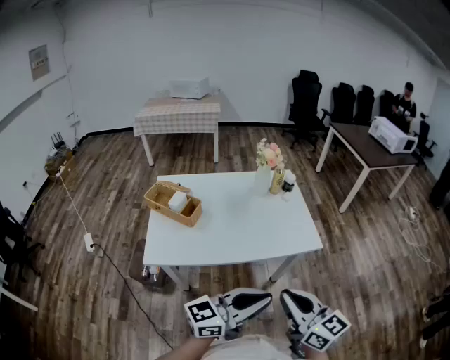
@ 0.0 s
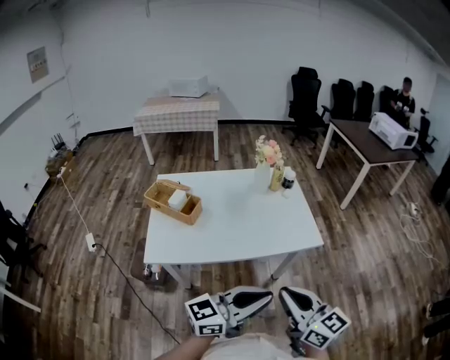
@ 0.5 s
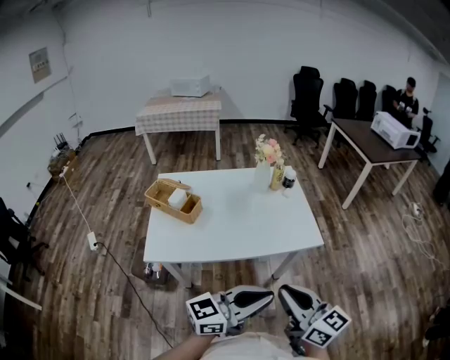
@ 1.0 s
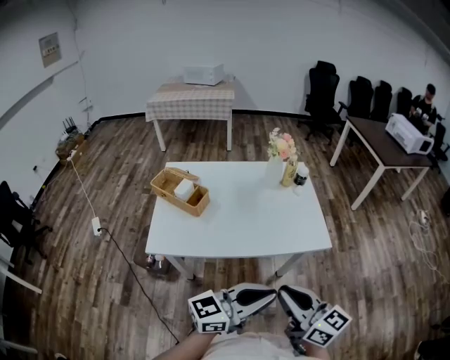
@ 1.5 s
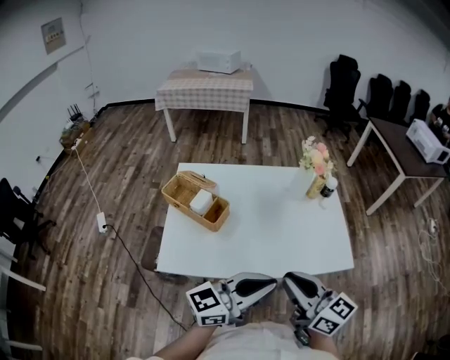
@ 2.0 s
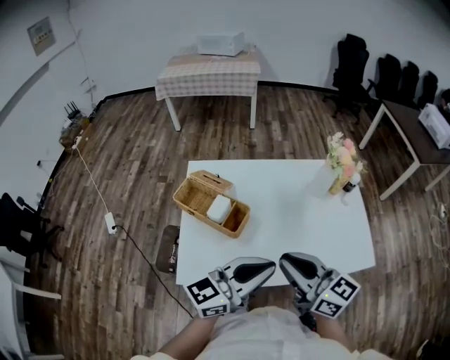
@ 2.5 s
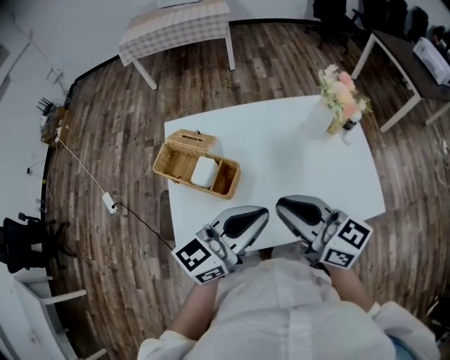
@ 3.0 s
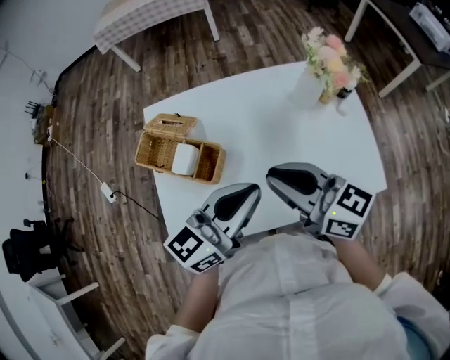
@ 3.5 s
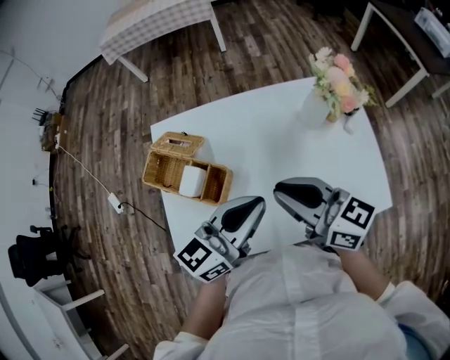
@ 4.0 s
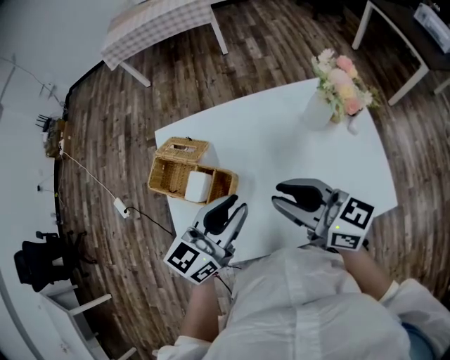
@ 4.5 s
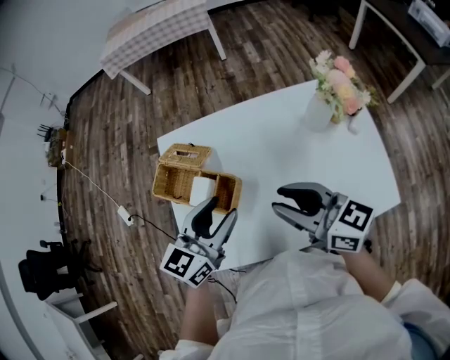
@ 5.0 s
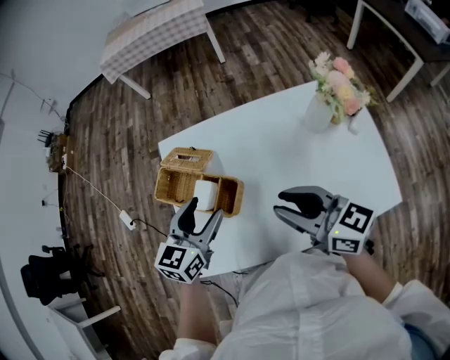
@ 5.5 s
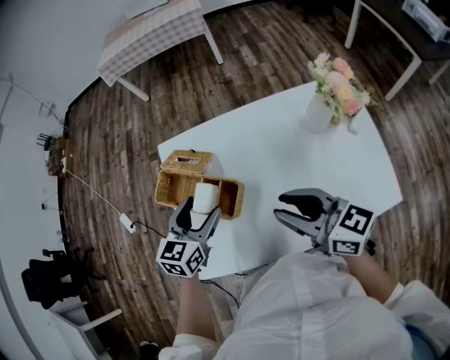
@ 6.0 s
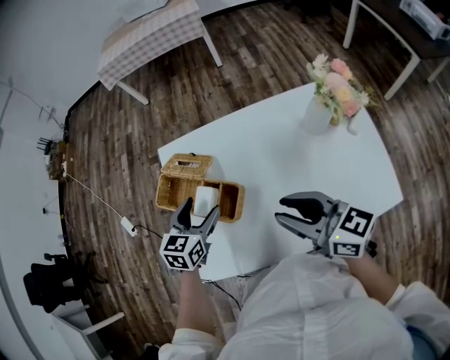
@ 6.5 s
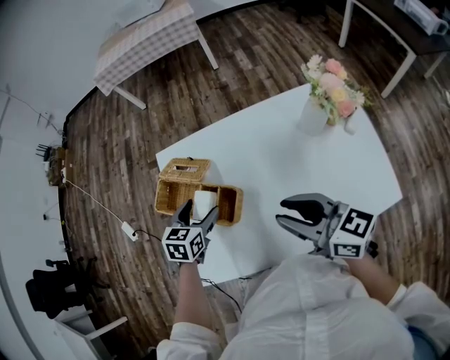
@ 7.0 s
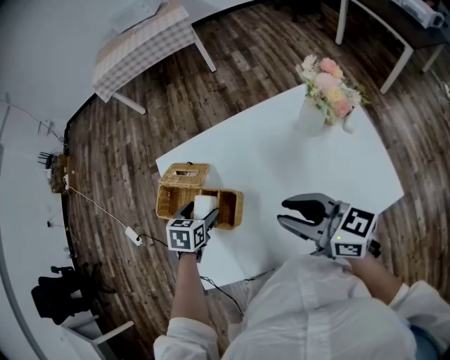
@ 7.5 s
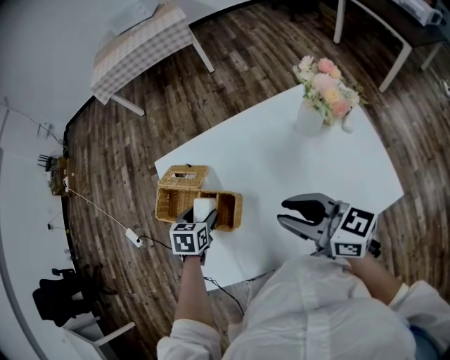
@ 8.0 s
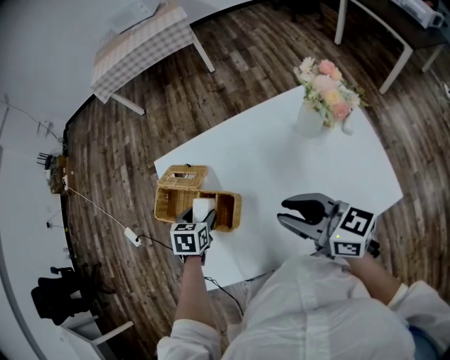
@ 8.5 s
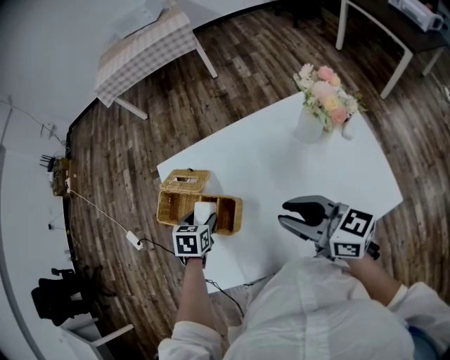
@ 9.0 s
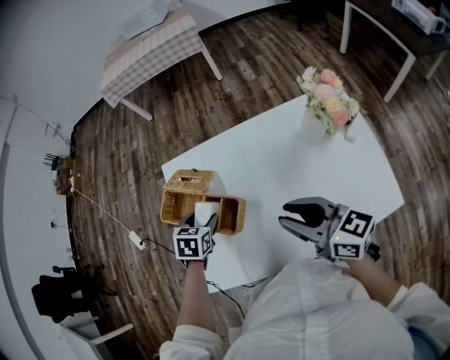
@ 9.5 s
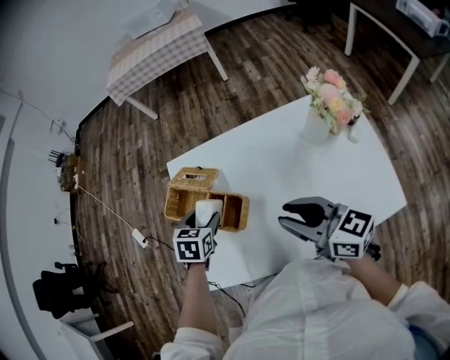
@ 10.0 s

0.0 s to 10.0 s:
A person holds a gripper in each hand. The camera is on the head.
0.0 to 2.0 s: Both grippers travel together forward and to the left, approximately 20 cm.
2.0 to 4.0 s: The grippers both shift forward by roughly 20 cm.
4.0 to 6.0 s: The left gripper heads to the left, downward and forward, covering some 20 cm, swivels about 40 degrees, and opens its fingers; the right gripper opens up.
6.0 to 8.0 s: The left gripper goes about 10 cm downward, and tilts its fingers approximately 30 degrees downward.
8.0 to 10.0 s: The left gripper is displaced upward by some 5 cm.

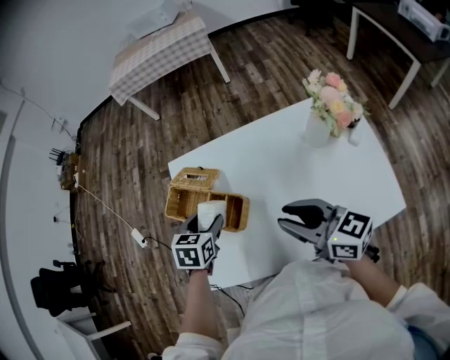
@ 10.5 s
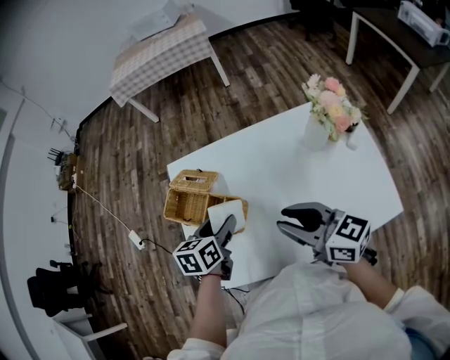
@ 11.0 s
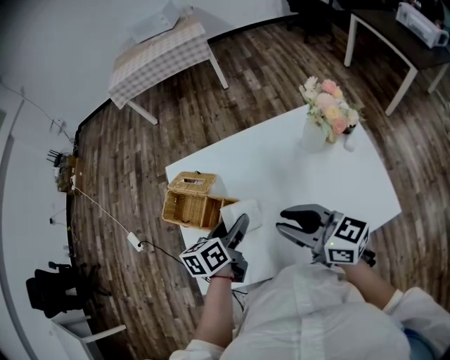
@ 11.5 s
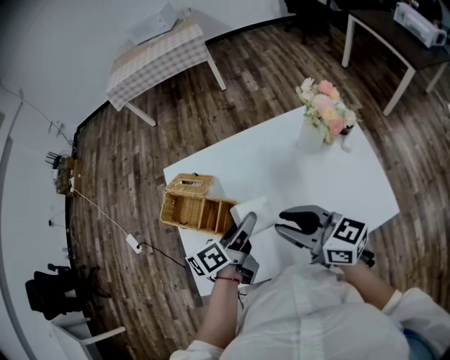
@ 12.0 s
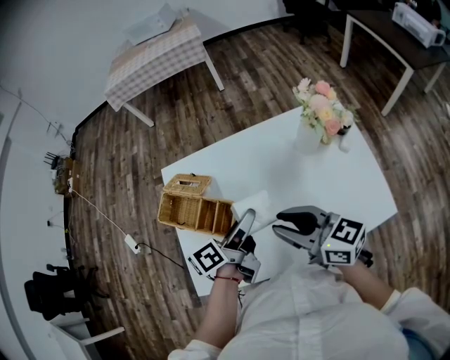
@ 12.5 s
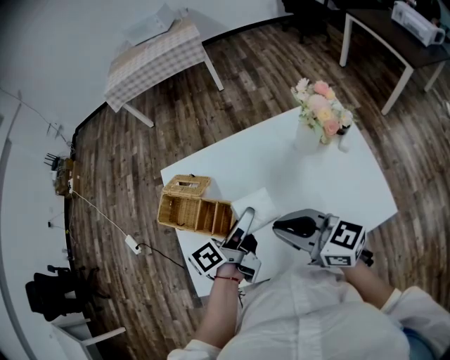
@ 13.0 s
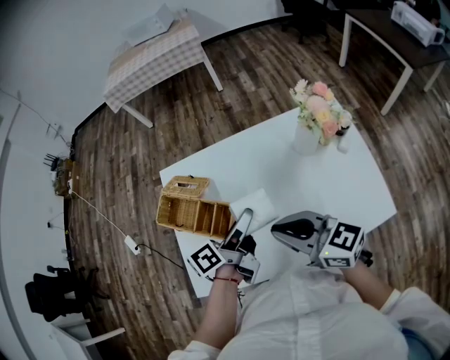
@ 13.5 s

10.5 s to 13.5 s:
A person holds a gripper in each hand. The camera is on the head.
10.5 to 12.0 s: The left gripper heads to the right and backward, covering about 15 cm, and twists approximately 50 degrees counterclockwise, seen from behind.
12.0 to 13.5 s: The right gripper closes its fingers.

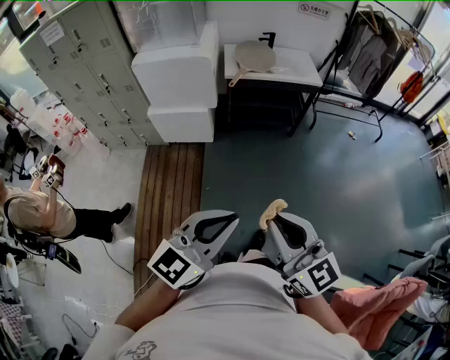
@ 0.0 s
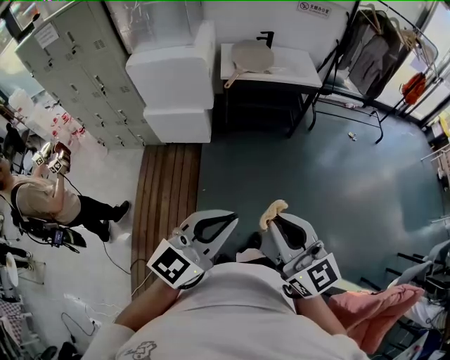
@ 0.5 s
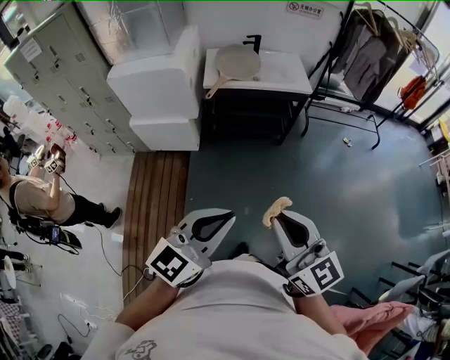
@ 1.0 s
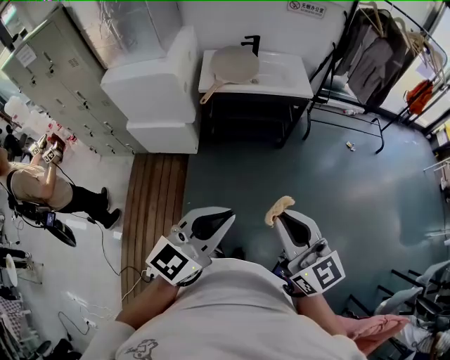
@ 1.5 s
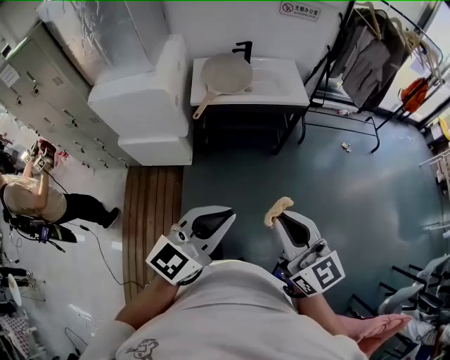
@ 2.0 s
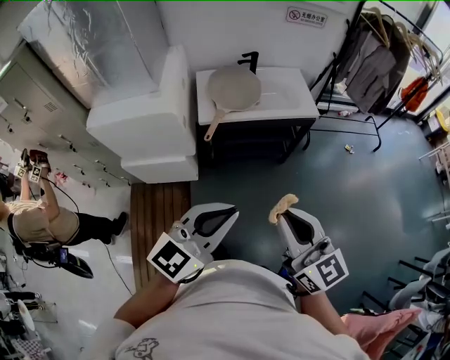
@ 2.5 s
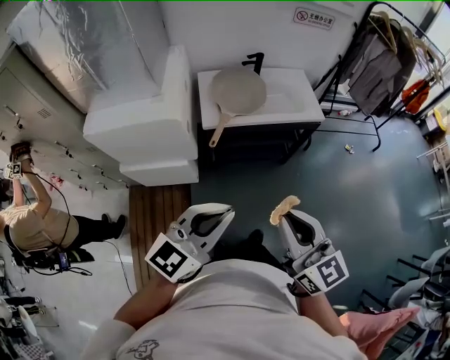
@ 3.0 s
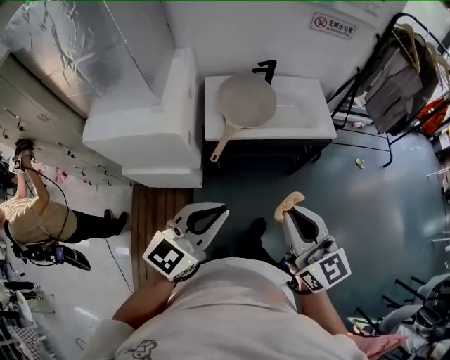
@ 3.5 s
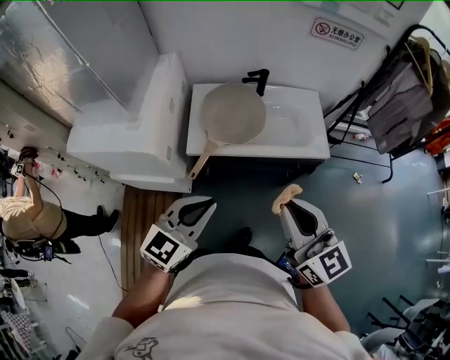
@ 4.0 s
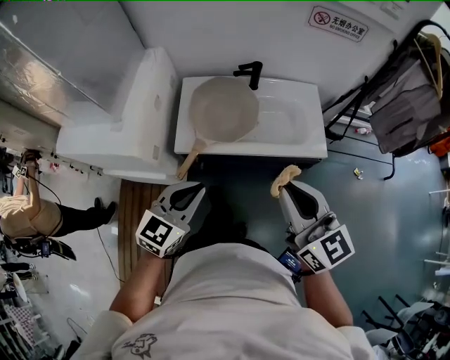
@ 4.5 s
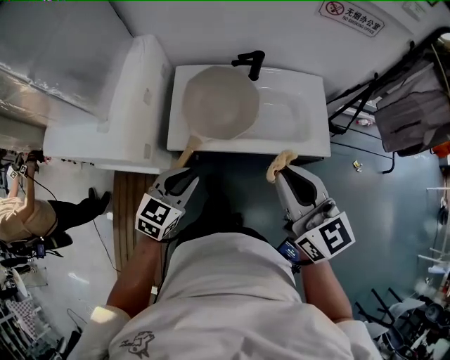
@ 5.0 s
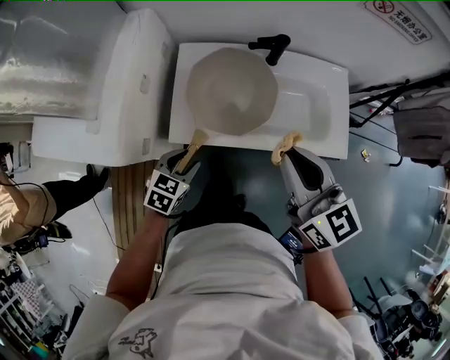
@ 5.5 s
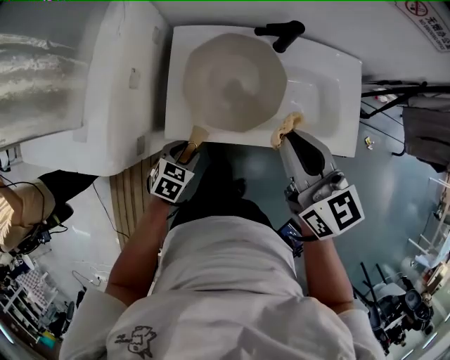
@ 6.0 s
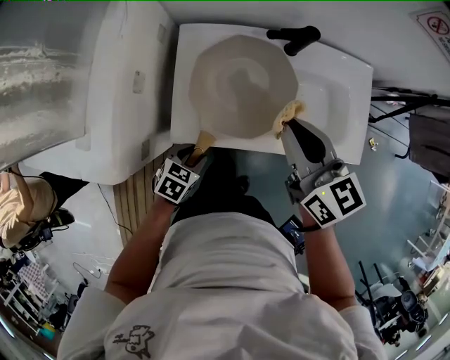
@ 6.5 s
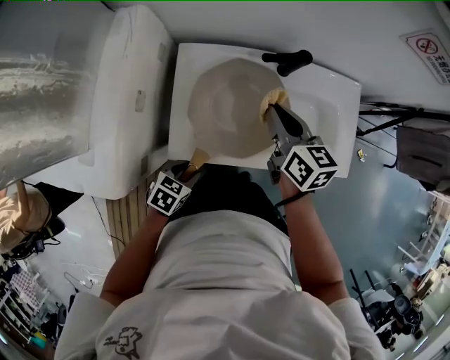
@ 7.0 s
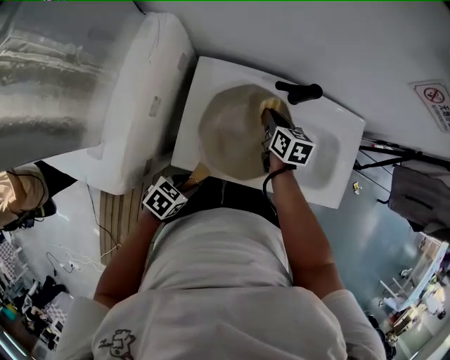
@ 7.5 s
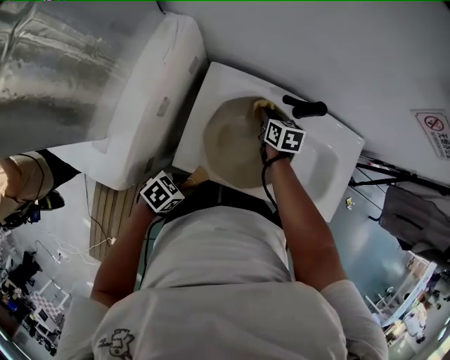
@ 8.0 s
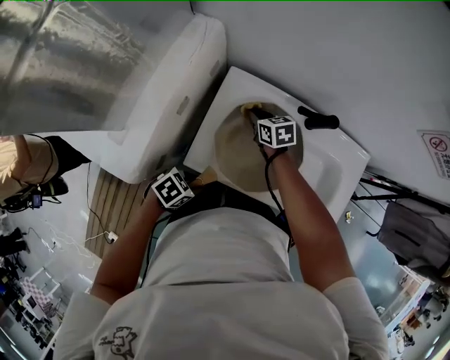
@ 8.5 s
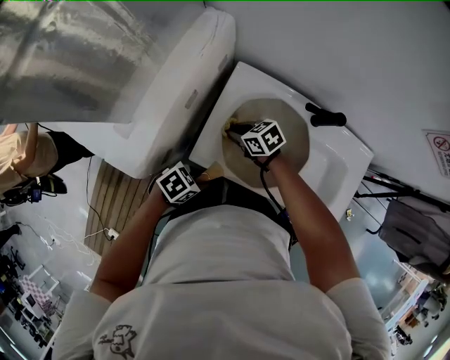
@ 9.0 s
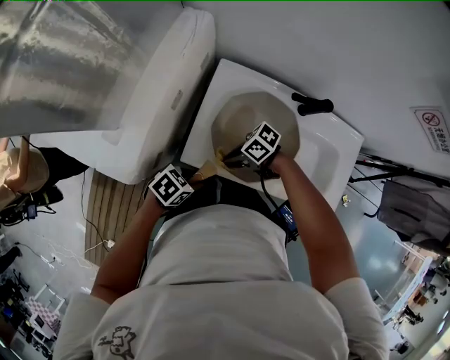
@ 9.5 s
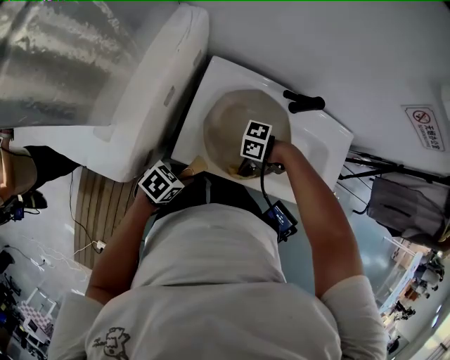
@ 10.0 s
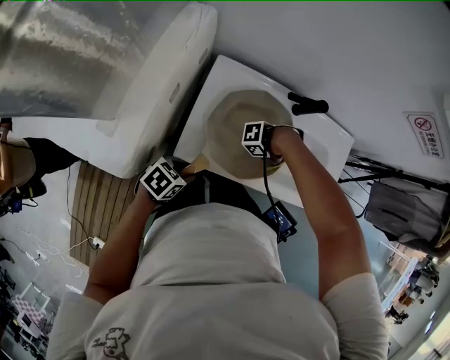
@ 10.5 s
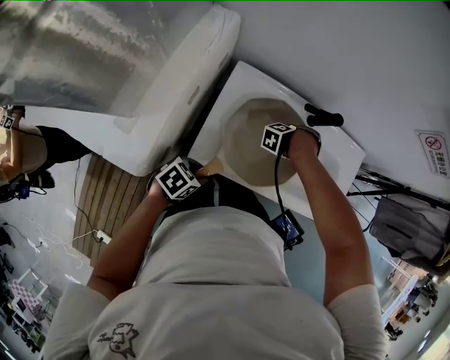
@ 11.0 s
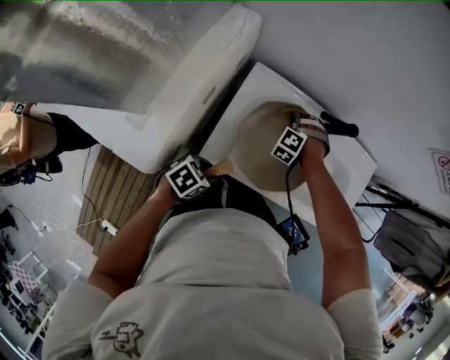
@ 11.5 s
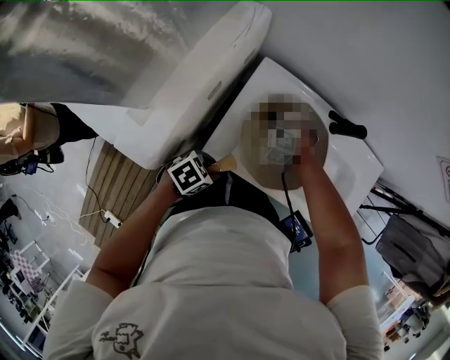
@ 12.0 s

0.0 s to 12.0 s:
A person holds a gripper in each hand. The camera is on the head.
0.0 to 2.0 s: The right gripper travels forward and to the right by some 35 cm; the left gripper moves forward, some 35 cm.
2.0 to 4.0 s: The two grippers travel together, forward, some 40 cm.
4.0 to 6.0 s: The right gripper moves forward and downward, approximately 35 cm, while the left gripper travels downward and forward by about 40 cm, tips its fingers downward by roughly 40 degrees, and opens up.
6.0 to 8.0 s: The right gripper goes some 35 cm downward, forward and to the left, and rotates approximately 30 degrees; the left gripper swivels approximately 20 degrees.
8.0 to 10.0 s: The right gripper shifts by approximately 30 cm, and rotates roughly 90 degrees.
10.0 to 12.0 s: The right gripper shifts by approximately 25 cm, and rotates approximately 90 degrees.

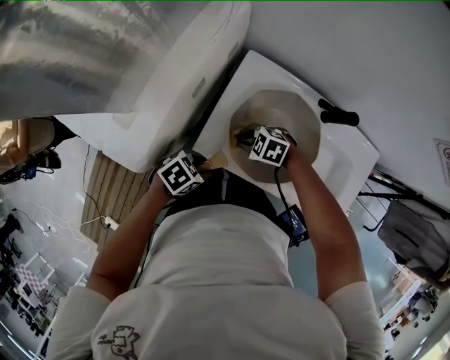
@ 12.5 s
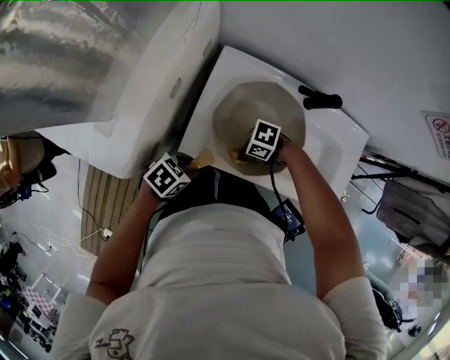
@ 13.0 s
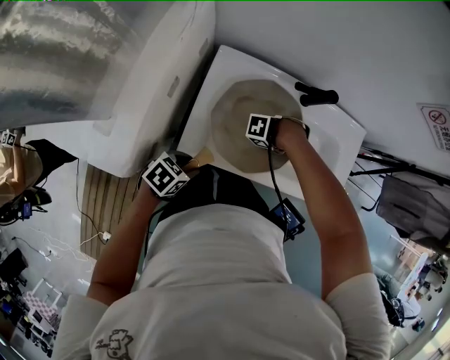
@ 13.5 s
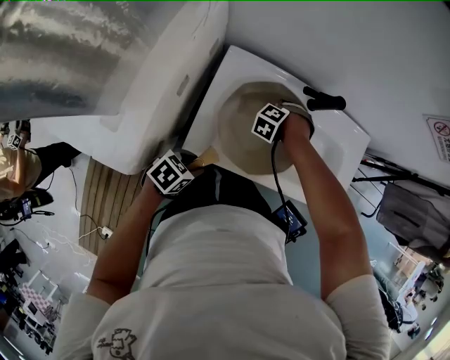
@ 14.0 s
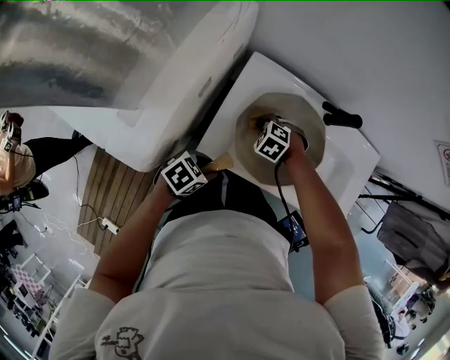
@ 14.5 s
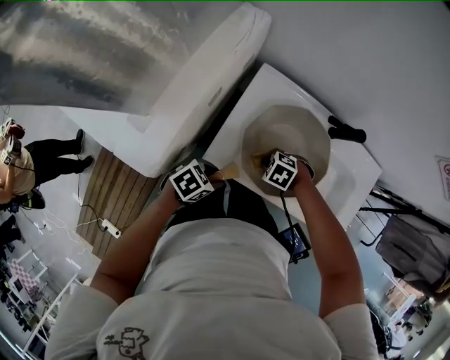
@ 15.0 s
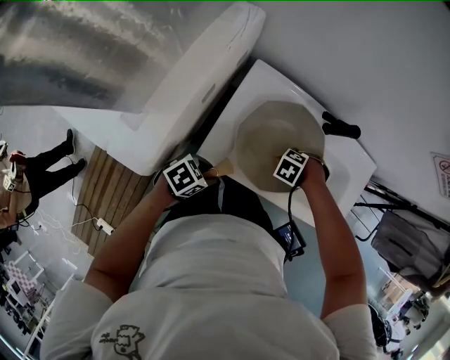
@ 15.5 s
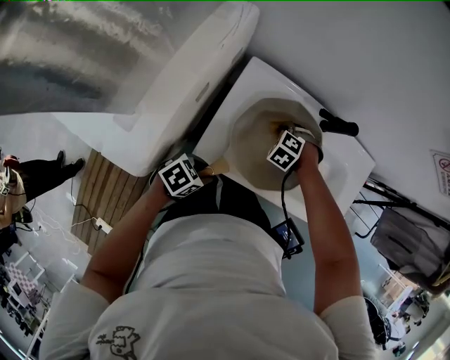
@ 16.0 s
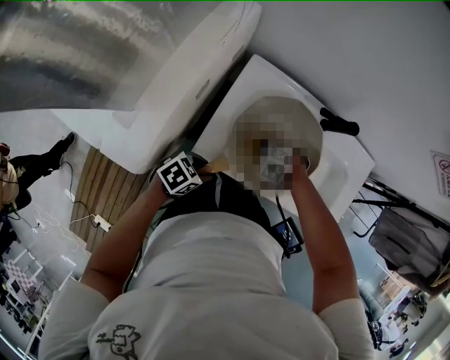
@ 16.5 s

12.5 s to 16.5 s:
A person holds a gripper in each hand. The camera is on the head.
12.5 to 14.5 s: The right gripper swivels about 30 degrees.
